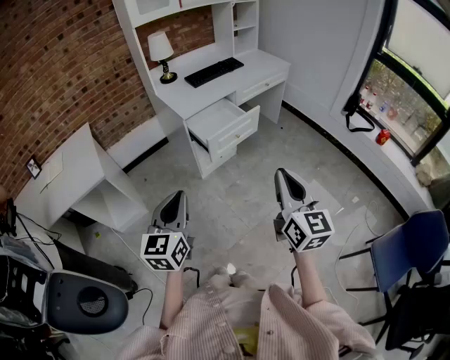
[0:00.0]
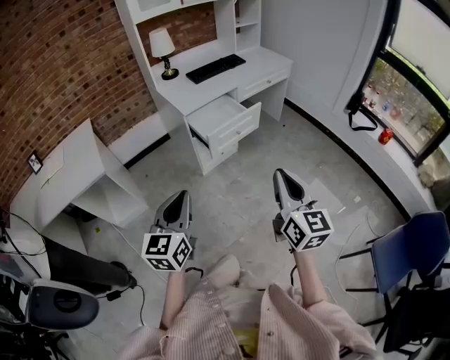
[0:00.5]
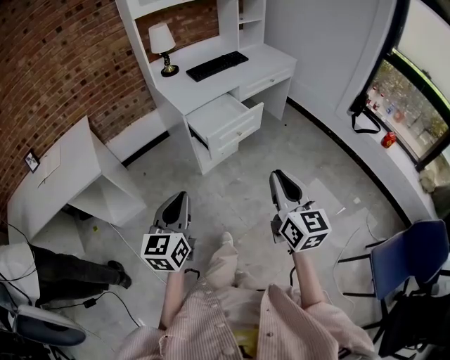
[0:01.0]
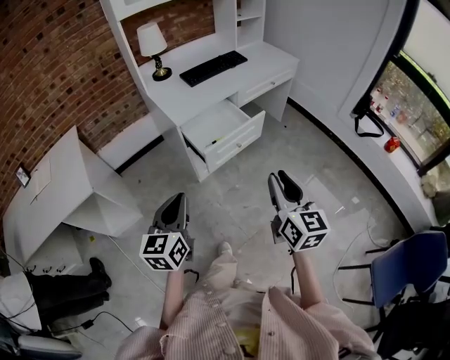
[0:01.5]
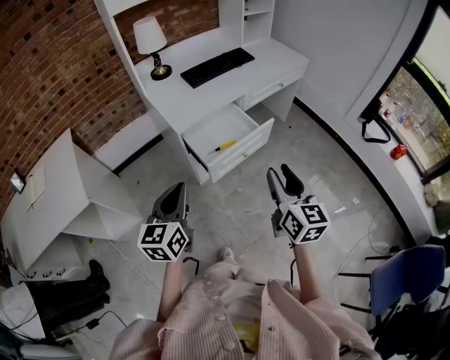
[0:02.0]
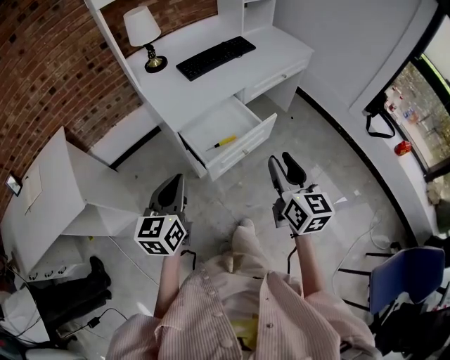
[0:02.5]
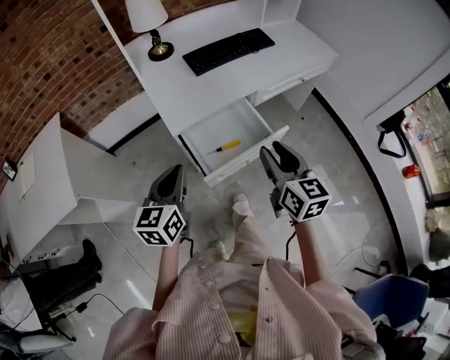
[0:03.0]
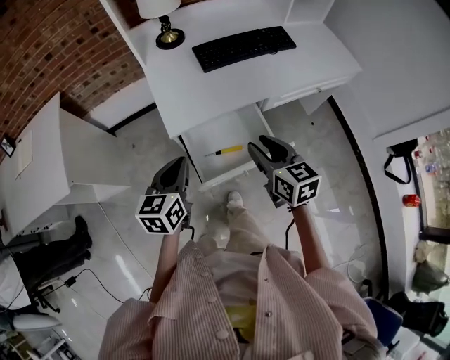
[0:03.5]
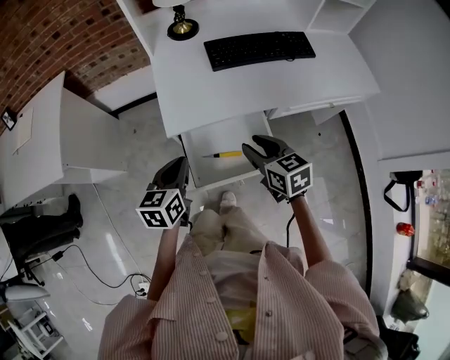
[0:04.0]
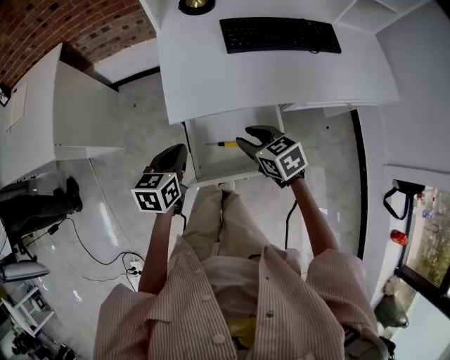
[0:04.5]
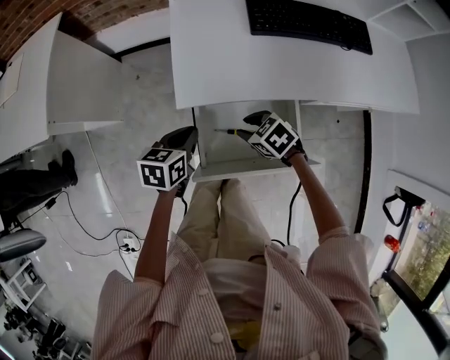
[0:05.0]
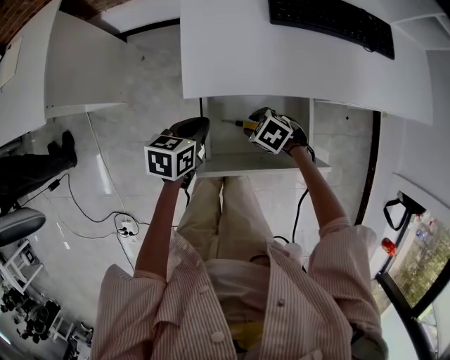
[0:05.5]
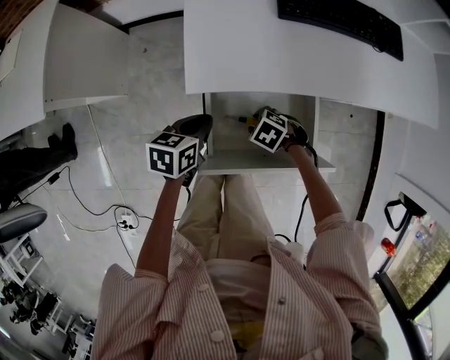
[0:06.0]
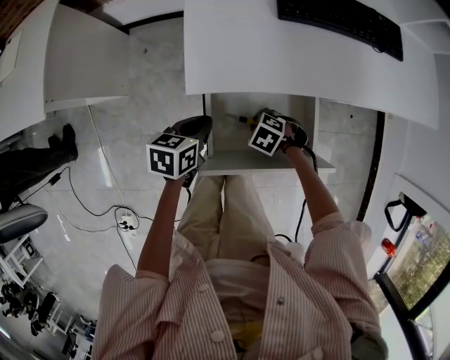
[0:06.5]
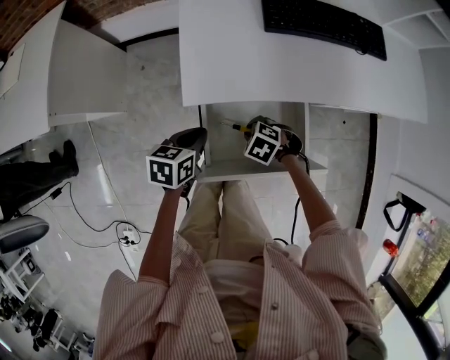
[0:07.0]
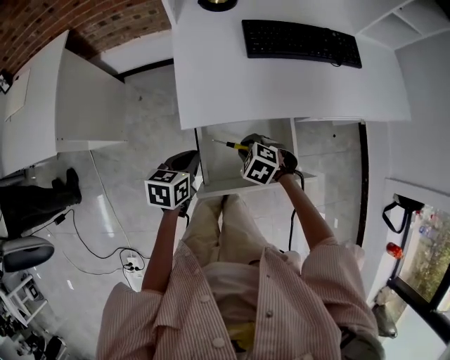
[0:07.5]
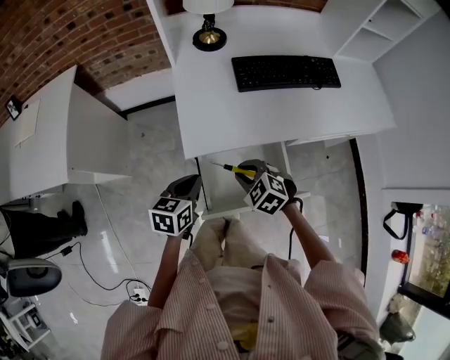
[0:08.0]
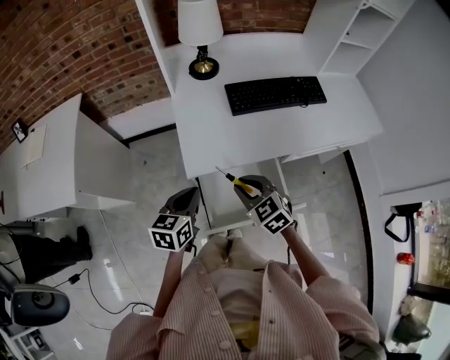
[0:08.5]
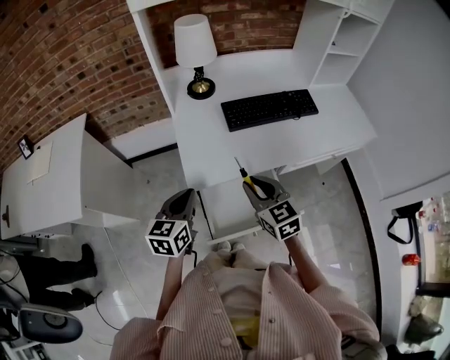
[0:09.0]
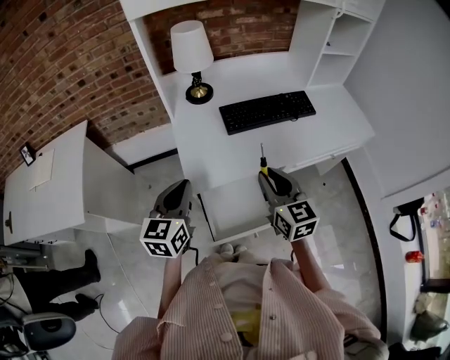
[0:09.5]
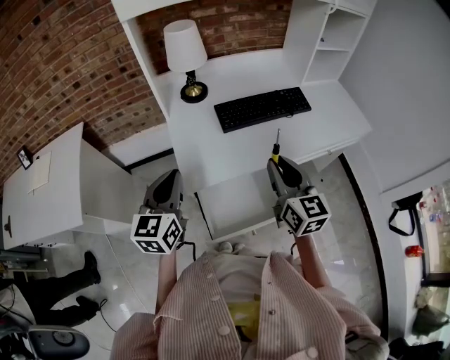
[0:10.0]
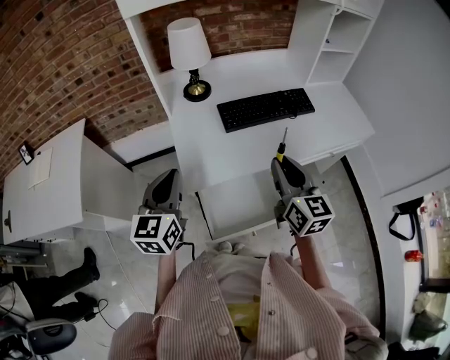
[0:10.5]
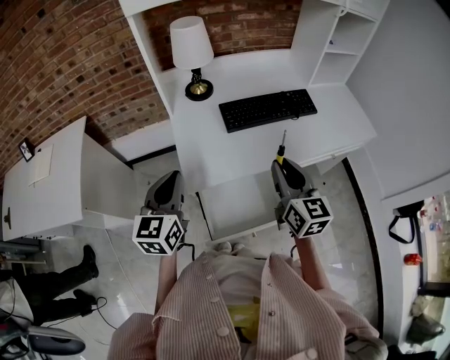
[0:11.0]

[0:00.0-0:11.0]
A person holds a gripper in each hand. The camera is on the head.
0:00.0 to 0:02.0: Both grippers travel together forward, some 25 cm. The right gripper opens up.
0:02.0 to 0:03.5: Both grippers move forward, roughly 25 cm. The right gripper changes its angle by approximately 30 degrees.
0:03.5 to 0:05.5: The right gripper shifts approximately 30 cm downward, and points its fingers approximately 40 degrees further downward. Meanwhile the left gripper moves downward, roughly 20 cm, and swivels approximately 30 degrees.
0:05.5 to 0:07.5: The right gripper heads upward, covering some 5 cm.
0:07.5 to 0:09.0: The grippers both shift upward by approximately 20 cm. The right gripper tips its fingers upward by some 50 degrees, while the left gripper turns by some 30 degrees.
0:09.0 to 0:11.0: The left gripper heads upward, covering about 10 cm. The right gripper moves to the right and upward, some 10 cm, and rotates about 30 degrees.

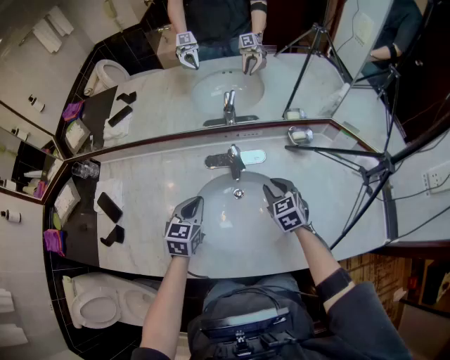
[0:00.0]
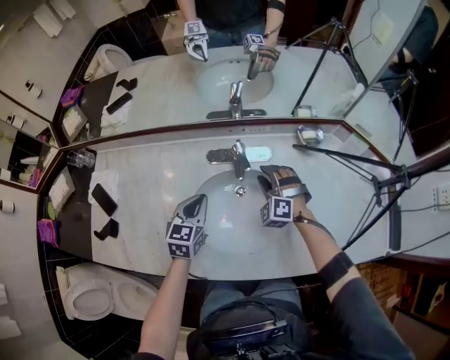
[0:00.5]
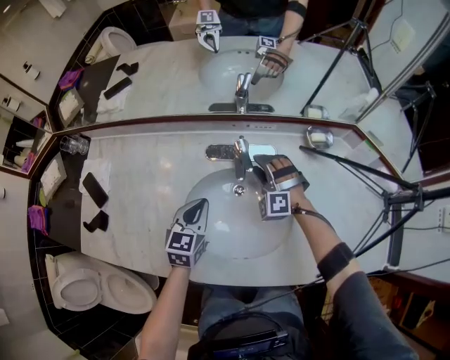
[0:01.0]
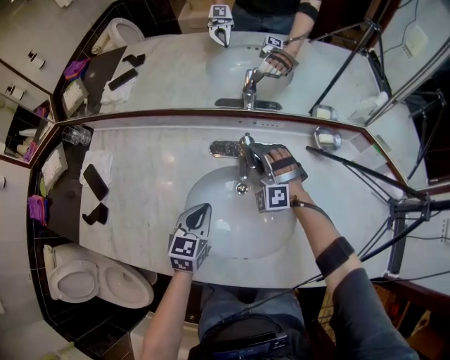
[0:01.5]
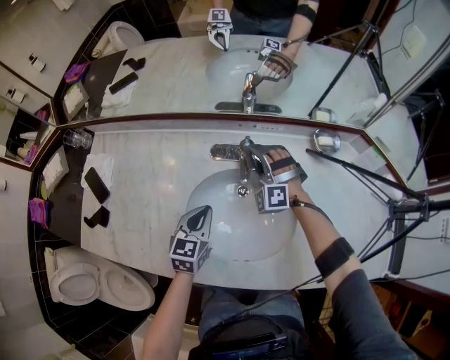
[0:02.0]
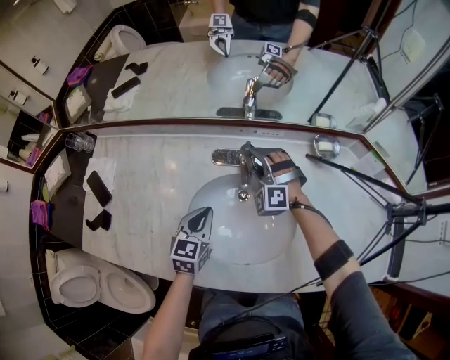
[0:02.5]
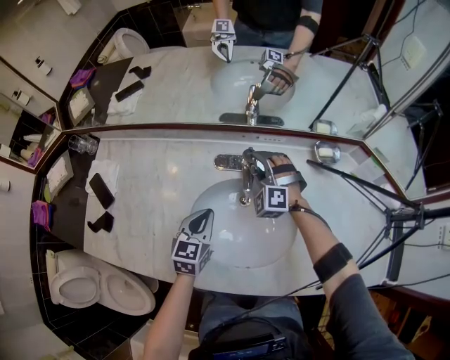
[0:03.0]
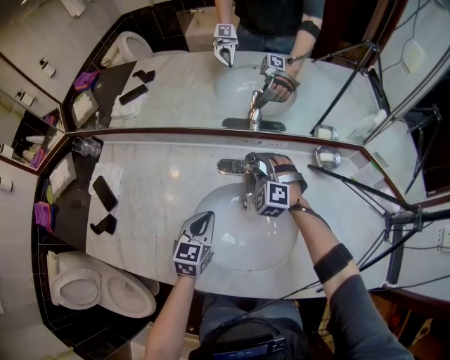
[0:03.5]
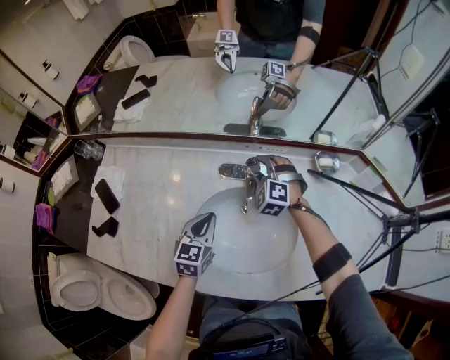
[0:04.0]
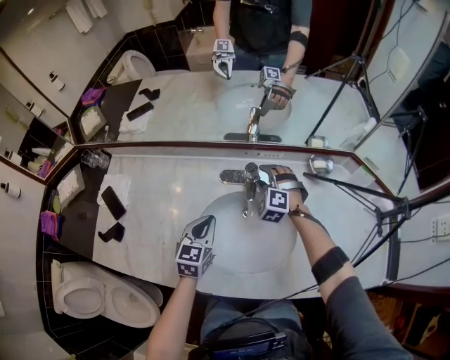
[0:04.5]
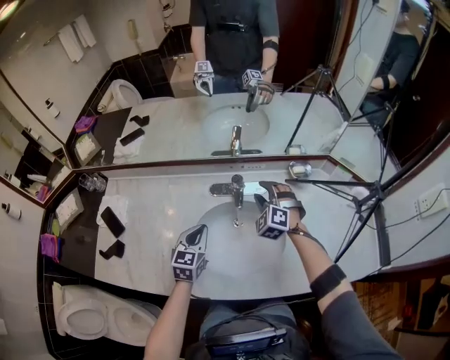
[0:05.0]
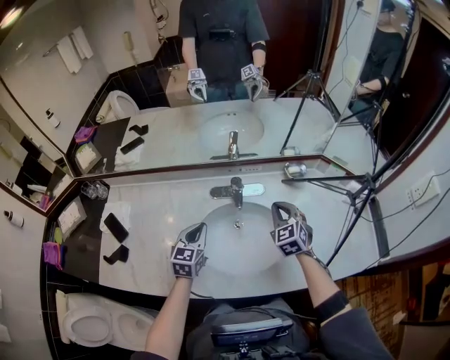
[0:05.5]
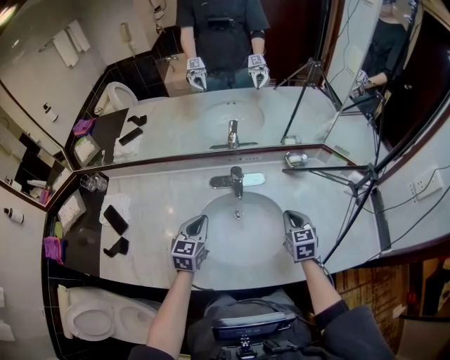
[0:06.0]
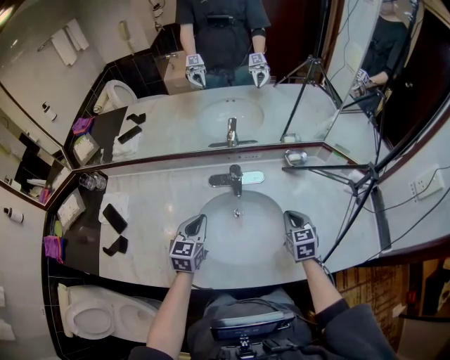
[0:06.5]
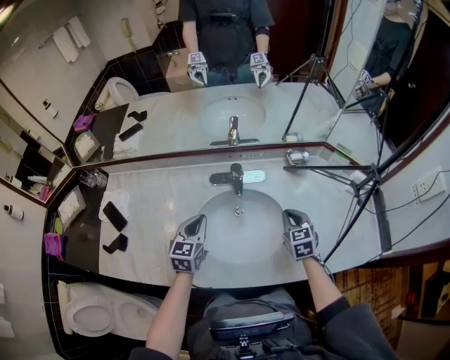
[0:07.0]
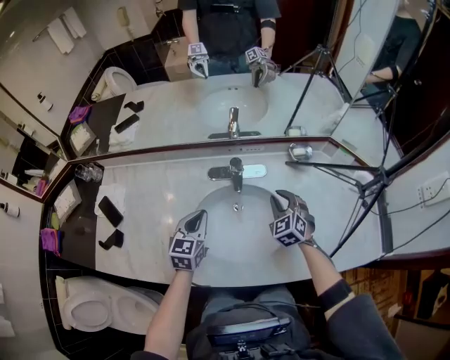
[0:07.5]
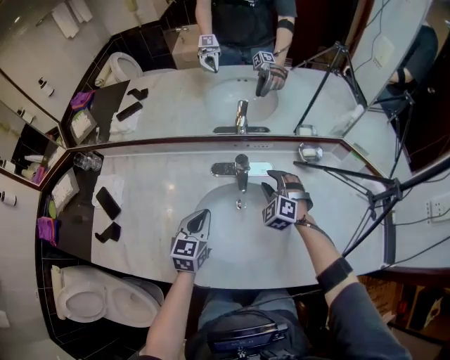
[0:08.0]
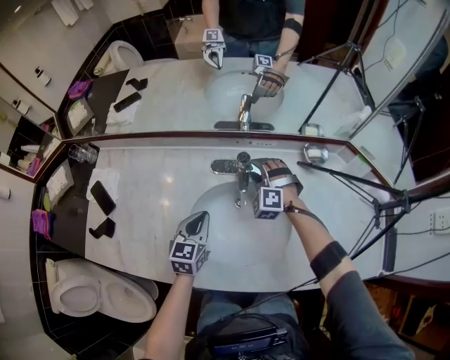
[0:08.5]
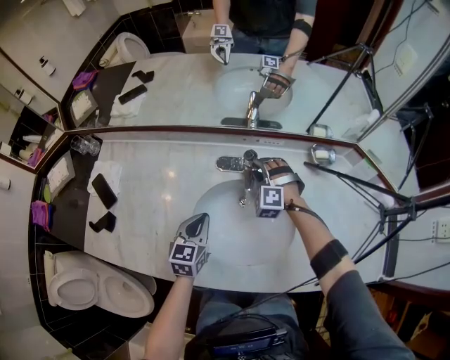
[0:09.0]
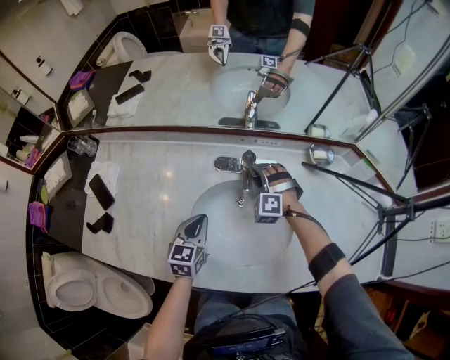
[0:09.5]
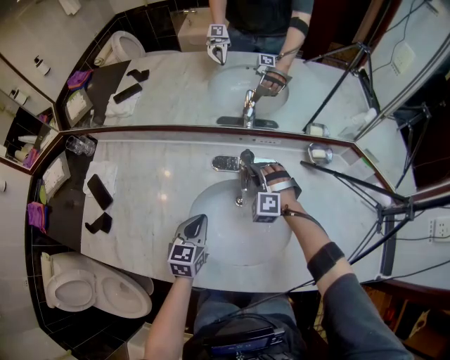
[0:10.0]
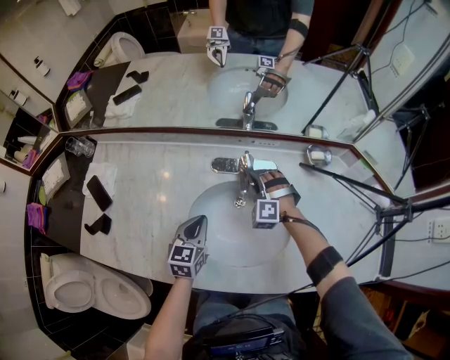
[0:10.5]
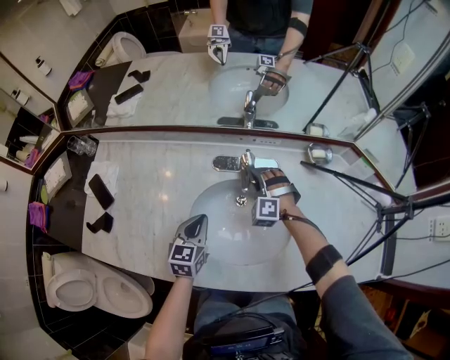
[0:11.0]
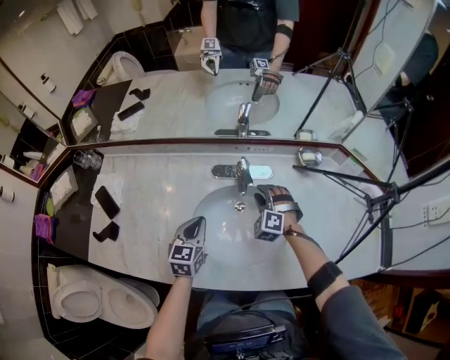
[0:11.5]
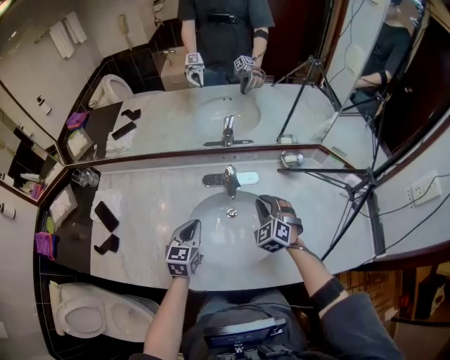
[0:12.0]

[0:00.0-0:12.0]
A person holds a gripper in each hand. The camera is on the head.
0:00.0 to 0:02.0: The right gripper travels forward and to the left by some 15 cm, rotates around the line of its fingers by about 70 degrees, counterclockwise from behind, and opens, while the left gripper moves downward, some 5 cm.
0:02.0 to 0:04.0: The grippers stay close to where they were, moving slightly.
0:04.0 to 0:06.0: The left gripper shifts about 5 cm upward. Meanwhile the right gripper travels backward and to the right by about 30 cm, rotates around the line of its fingers by about 70 degrees, clockwise from behind, and closes.
0:06.0 to 0:08.0: The right gripper shifts some 15 cm forward and to the left, twists approximately 60 degrees counterclockwise, seen from behind, and opens up.
0:08.0 to 0:10.0: The left gripper travels downward by roughly 5 cm; the right gripper moves to the left and downward, roughly 10 cm, and rotates about 20 degrees.
0:10.0 to 0:12.0: The left gripper moves upward, roughly 5 cm. Meanwhile the right gripper is displaced backward, upward and to the right by about 20 cm, and swivels some 40 degrees.

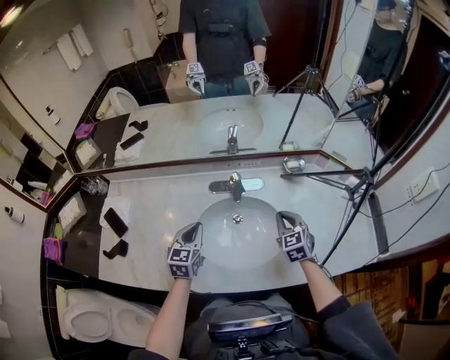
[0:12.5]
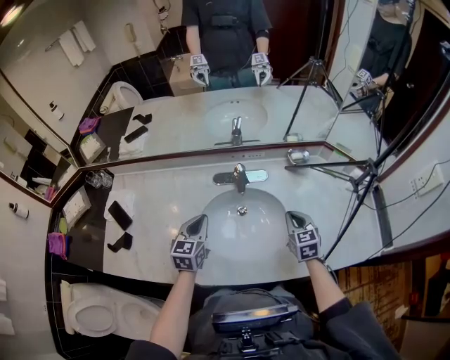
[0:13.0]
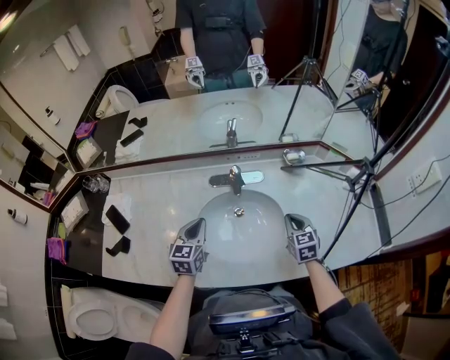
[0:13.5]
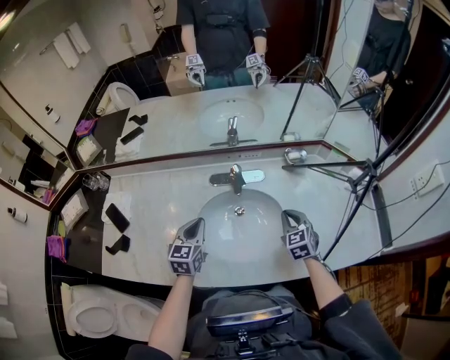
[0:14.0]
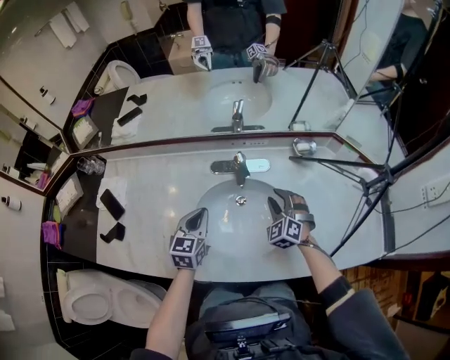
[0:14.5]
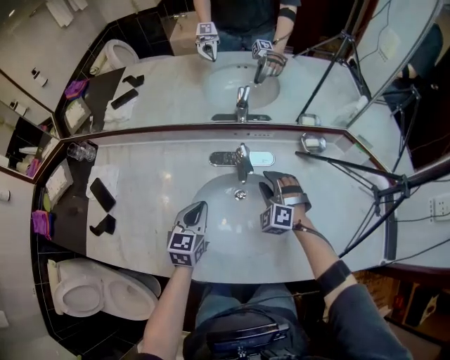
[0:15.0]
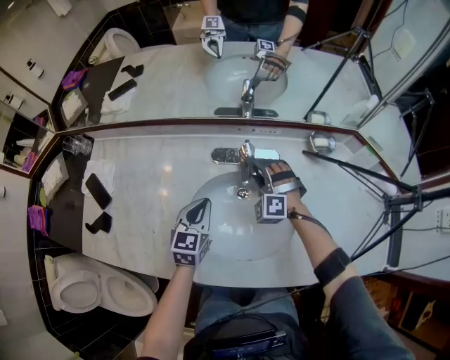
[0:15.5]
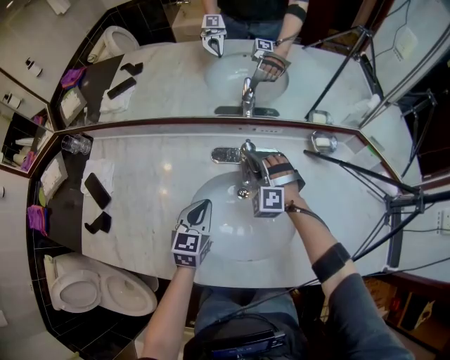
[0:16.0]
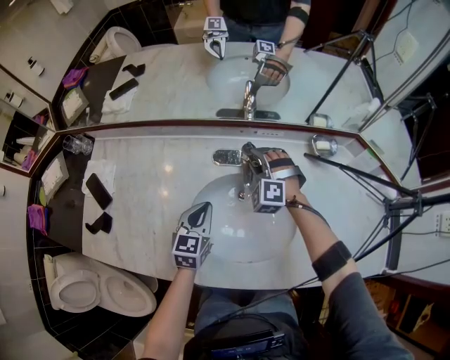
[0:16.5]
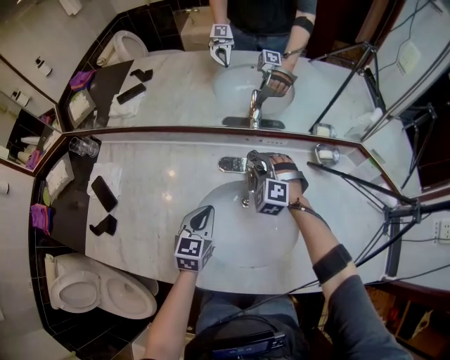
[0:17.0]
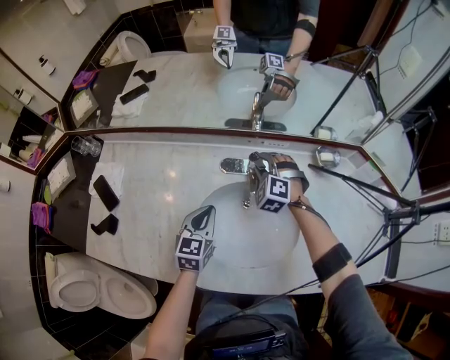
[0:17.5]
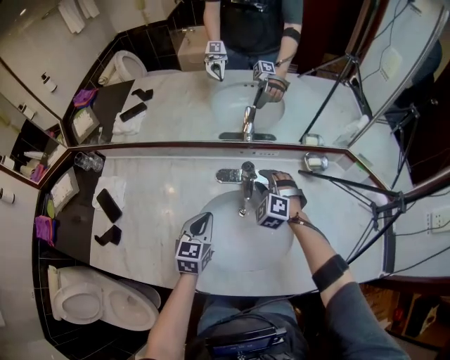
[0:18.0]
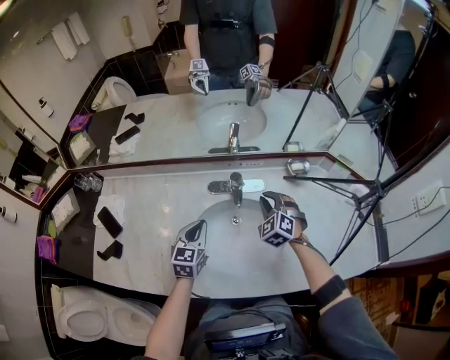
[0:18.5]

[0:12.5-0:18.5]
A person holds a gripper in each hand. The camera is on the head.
0:12.5 to 0:14.5: The right gripper shifts some 5 cm downward, swivels approximately 30 degrees, and opens its fingers.
0:14.5 to 0:16.5: The left gripper moves downward, approximately 5 cm; the right gripper moves forward and to the left, about 20 cm, and swivels some 30 degrees.
0:16.5 to 0:18.5: The left gripper heads upward, covering some 5 cm; the right gripper heads backward, to the right and upward, covering some 15 cm, turns by some 30 degrees, and closes up.
